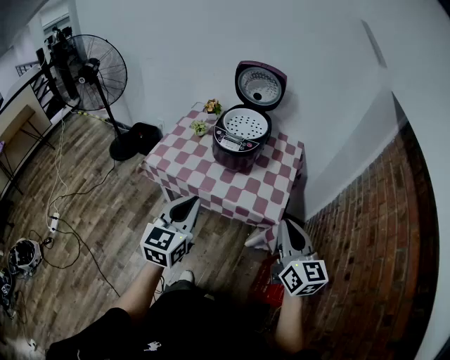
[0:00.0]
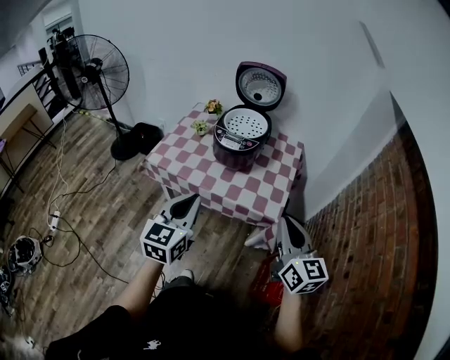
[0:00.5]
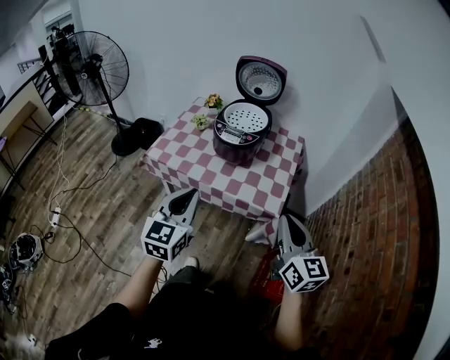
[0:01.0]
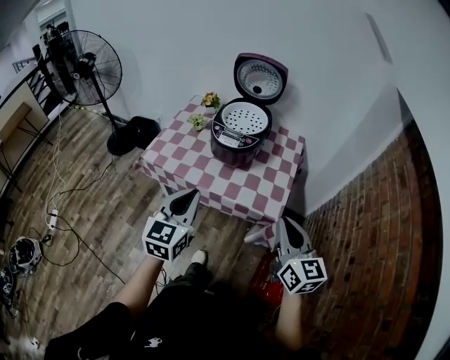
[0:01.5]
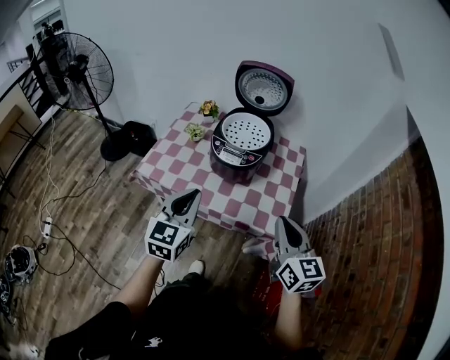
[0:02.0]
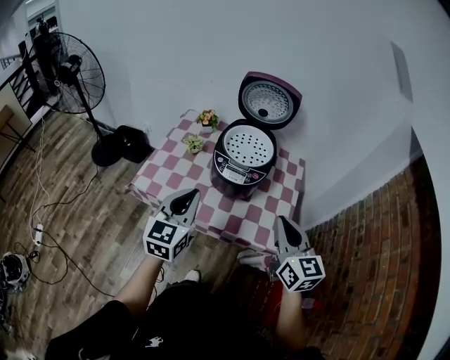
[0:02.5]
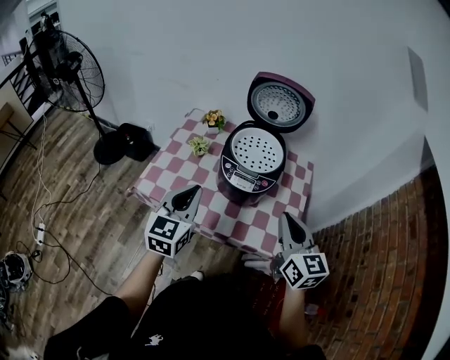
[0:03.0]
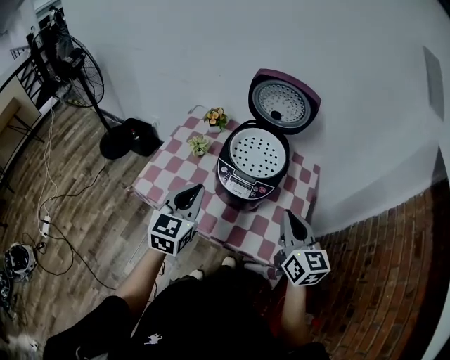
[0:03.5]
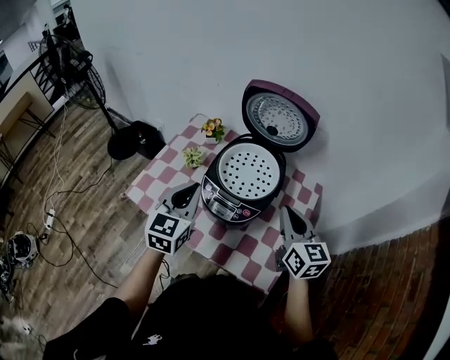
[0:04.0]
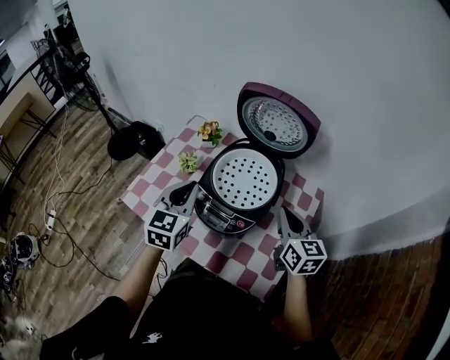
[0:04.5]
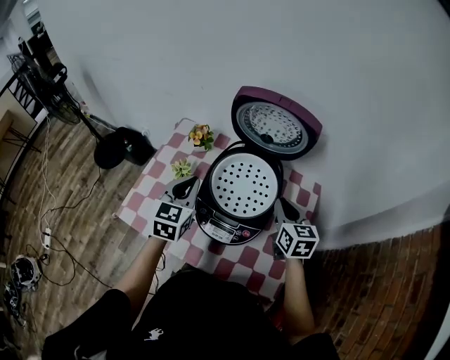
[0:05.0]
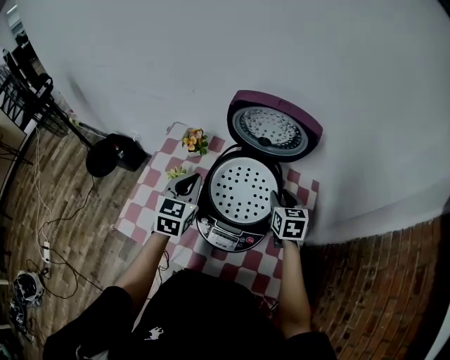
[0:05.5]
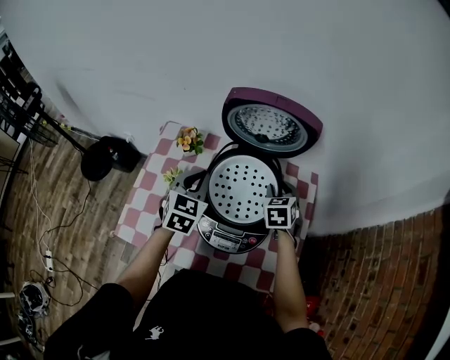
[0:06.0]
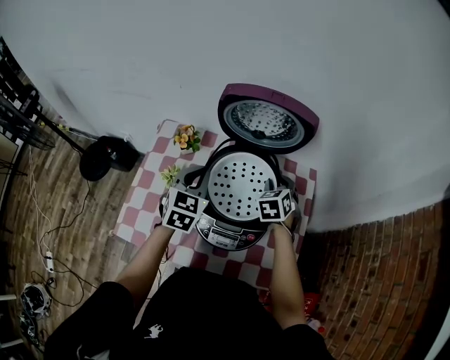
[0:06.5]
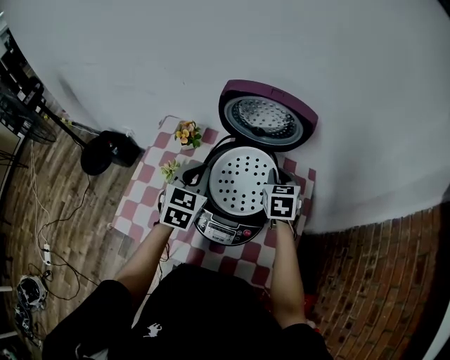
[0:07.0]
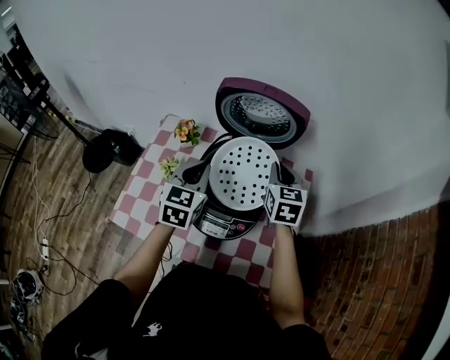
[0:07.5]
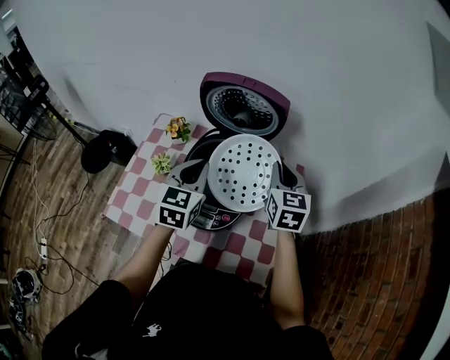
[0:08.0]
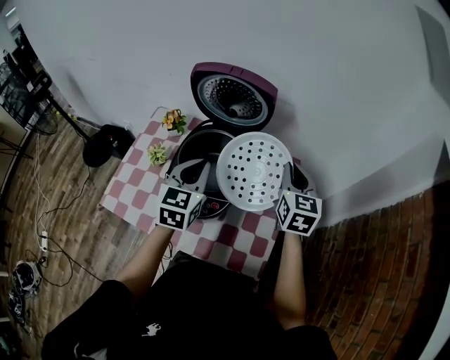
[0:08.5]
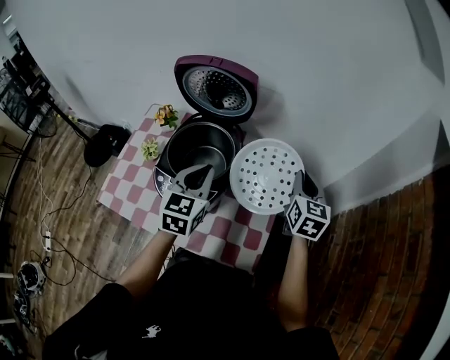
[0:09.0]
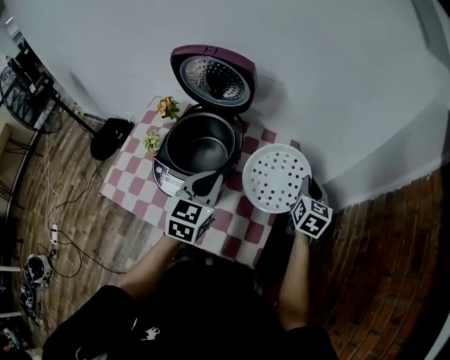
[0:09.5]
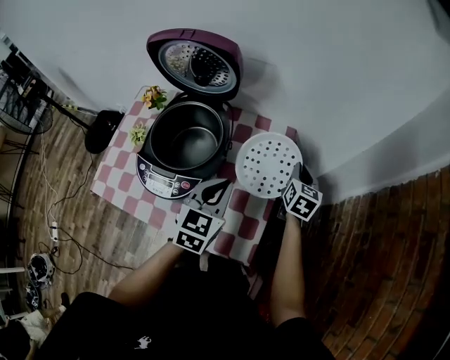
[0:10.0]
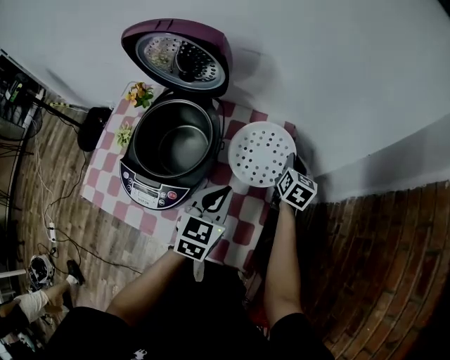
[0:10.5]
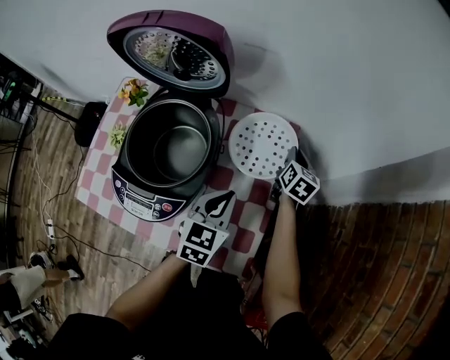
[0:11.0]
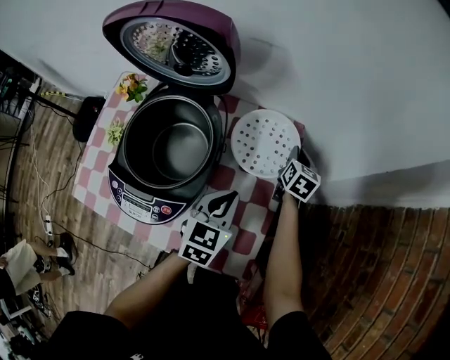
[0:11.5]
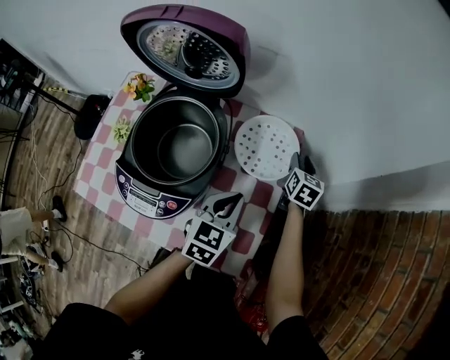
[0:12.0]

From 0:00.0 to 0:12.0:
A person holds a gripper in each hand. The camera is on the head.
From 0:00.0 to 0:02.0: Both grippers travel together forward, about 10 cm.
From 0:02.0 to 0:04.0: Both grippers travel together forward, roughly 25 cm.
From 0:04.0 to 0:06.0: The left gripper ends up some 20 cm from where it was, and turns by roughly 20 degrees. The right gripper shifts by some 25 cm, swivels about 50 degrees, and opens its fingers.
From 0:06.0 to 0:08.0: The left gripper shifts approximately 10 cm to the right and upward. Meanwhile the right gripper travels upward by about 15 cm, changes its angle by approximately 30 degrees, and closes up.
From 0:08.0 to 0:10.0: Both grippers travel together to the right and downward, about 25 cm. The right gripper changes its angle by about 20 degrees.
From 0:10.0 to 0:12.0: The right gripper shifts about 10 cm forward and downward, and opens, while the left gripper is displaced downward by approximately 10 cm.

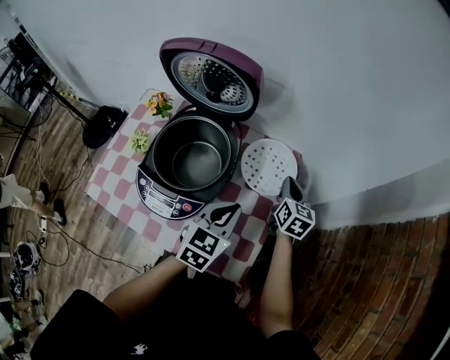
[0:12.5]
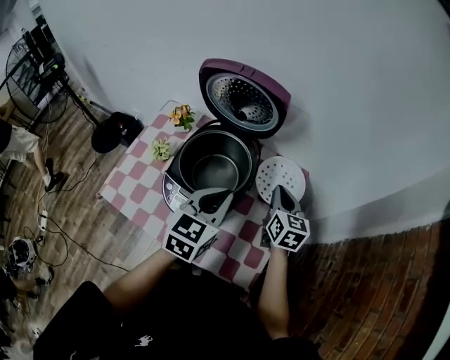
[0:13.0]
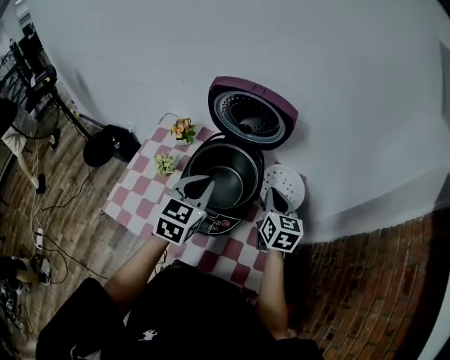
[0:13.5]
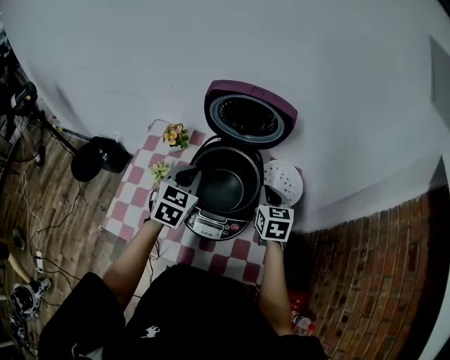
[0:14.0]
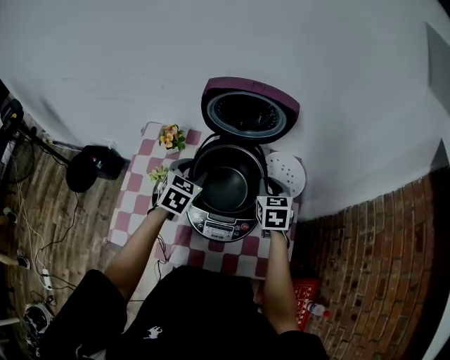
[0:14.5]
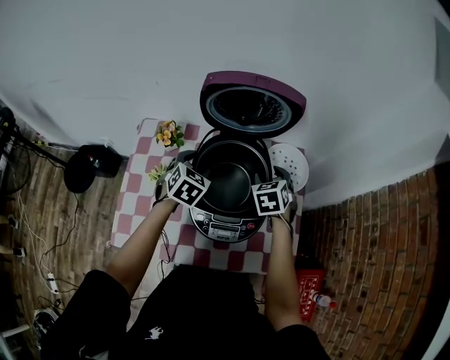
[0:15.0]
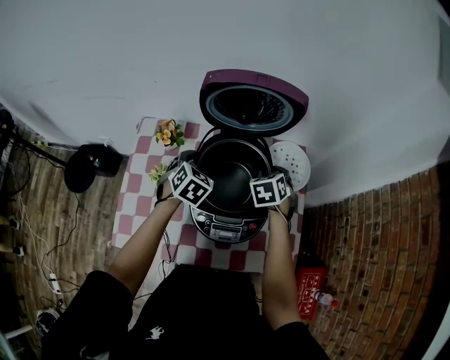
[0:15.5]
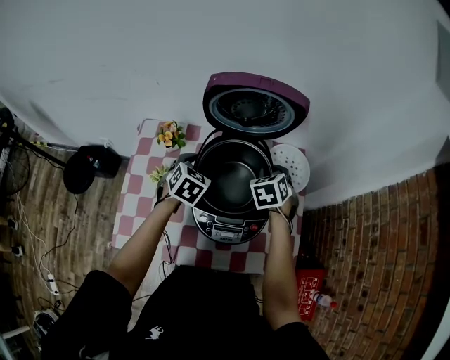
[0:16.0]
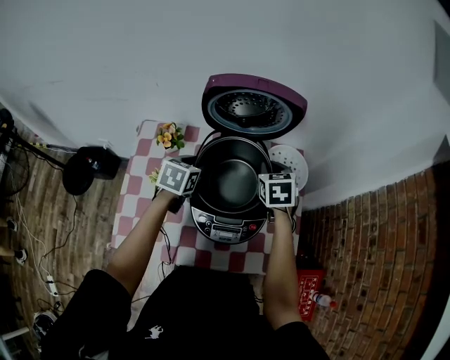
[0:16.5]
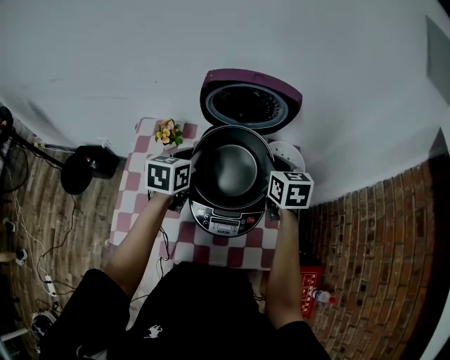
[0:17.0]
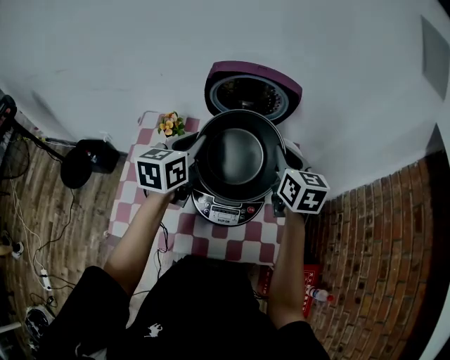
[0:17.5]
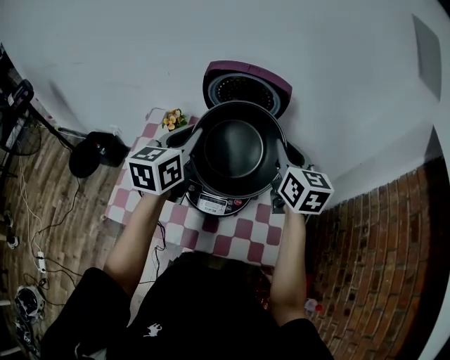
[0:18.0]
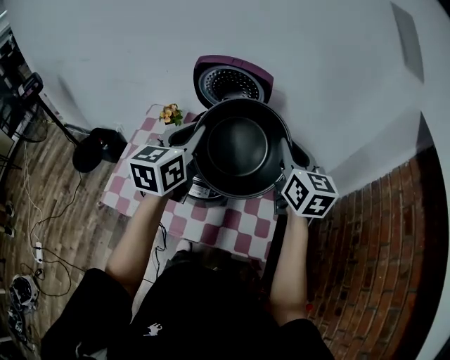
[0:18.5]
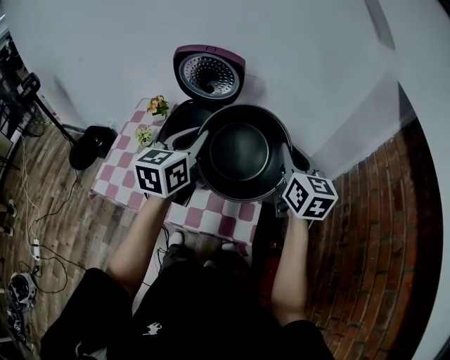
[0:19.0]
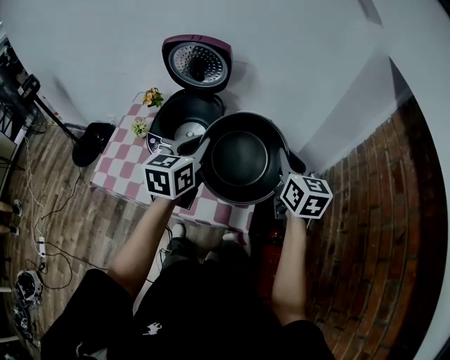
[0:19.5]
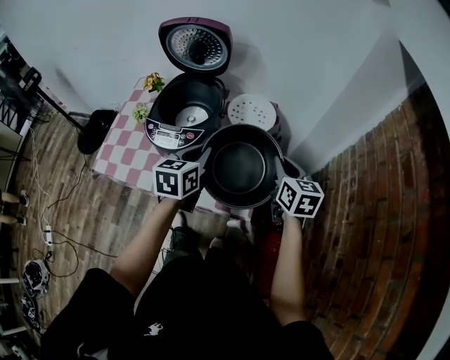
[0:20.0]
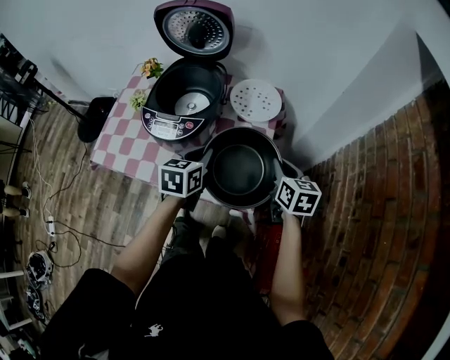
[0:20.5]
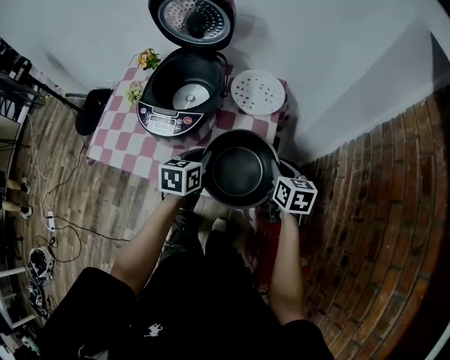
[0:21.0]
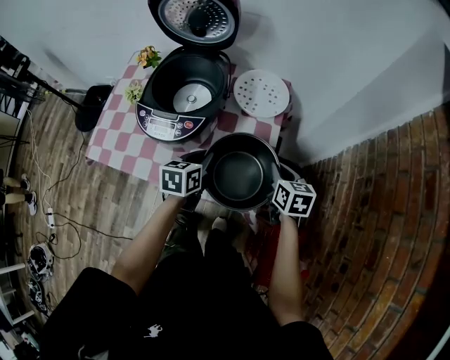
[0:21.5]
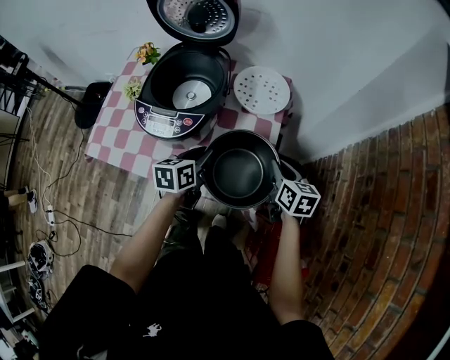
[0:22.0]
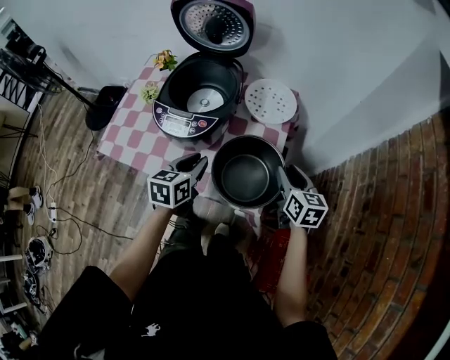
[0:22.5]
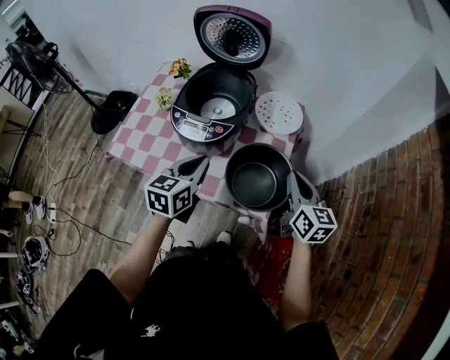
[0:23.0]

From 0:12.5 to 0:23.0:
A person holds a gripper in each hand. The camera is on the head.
From 0:12.5 to 0:14.5: The two grippers go approximately 25 cm to the left. The right gripper changes its angle by about 20 degrees. Meanwhile the left gripper opens.
From 0:14.5 to 0:16.5: The right gripper opens and closes again.
From 0:16.5 to 0:19.0: The right gripper heads to the right, upward and backward, covering roughly 30 cm, and angles its fingers upward, by roughly 30 degrees; the left gripper goes about 35 cm upward, to the right and backward, angles its fingers upward, by approximately 30 degrees, and closes up.
From 0:19.0 to 0:21.0: Both grippers move downward, about 25 cm. The left gripper rotates roughly 30 degrees. Meanwhile the right gripper changes its angle by about 30 degrees.
From 0:21.0 to 0:23.0: The right gripper moves upward, some 10 cm, rotates approximately 20 degrees, and opens, then closes once more, while the left gripper heads upward and to the left, covering roughly 15 cm.

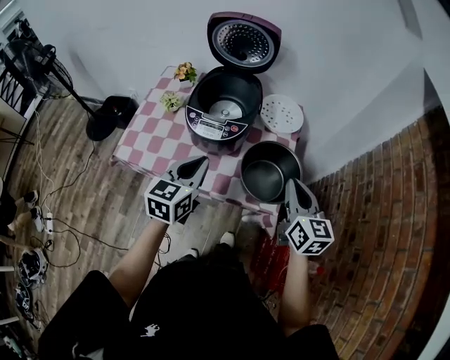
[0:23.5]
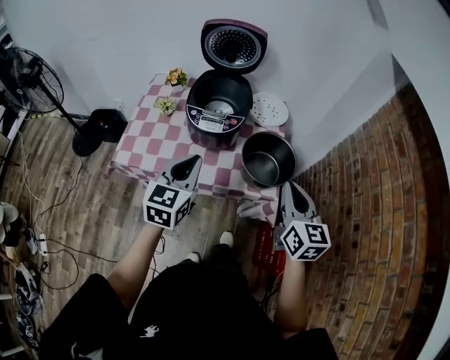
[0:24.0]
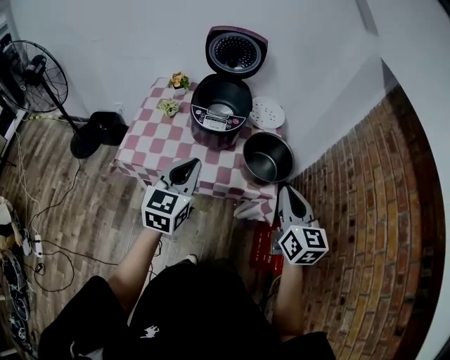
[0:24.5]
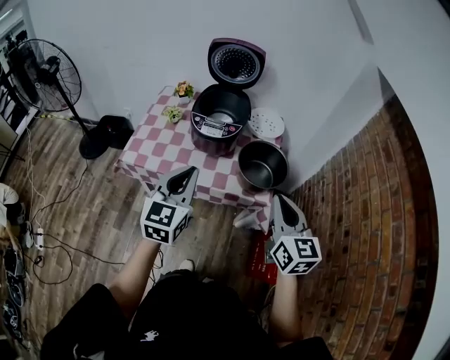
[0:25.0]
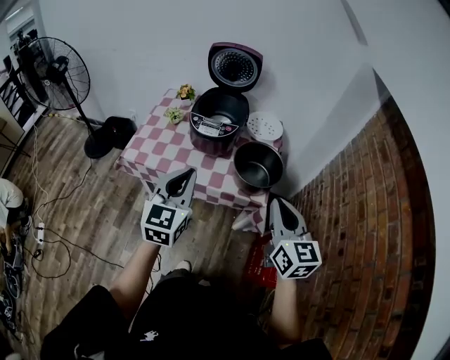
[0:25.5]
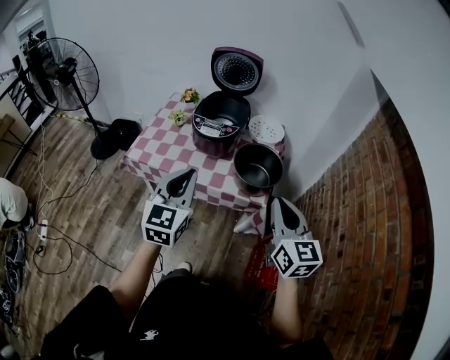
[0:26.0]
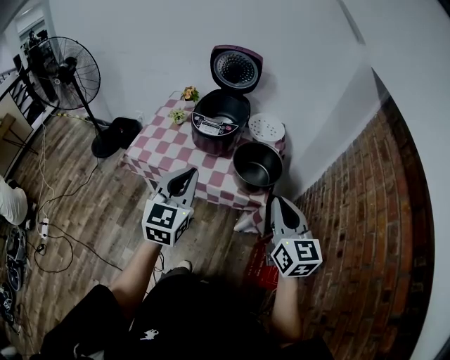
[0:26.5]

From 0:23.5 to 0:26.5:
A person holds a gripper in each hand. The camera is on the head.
From 0:23.5 to 0:25.0: Both grippers travel together backward and upward, roughly 20 cm.
From 0:25.0 to 0:26.5: The right gripper goes roughly 5 cm to the right. Meanwhile the left gripper is displaced backward by some 5 cm.

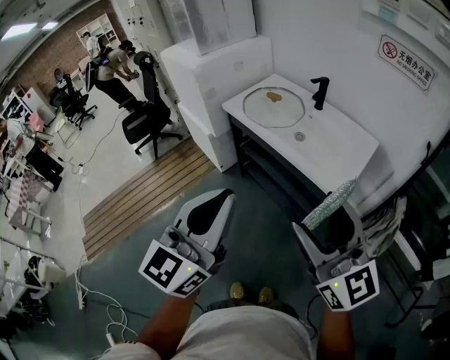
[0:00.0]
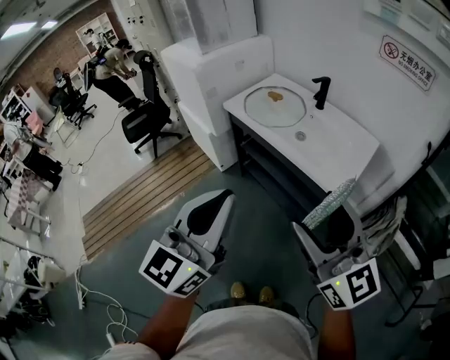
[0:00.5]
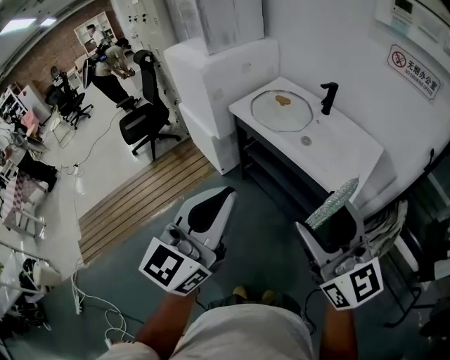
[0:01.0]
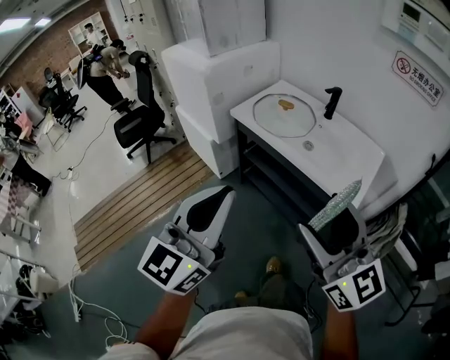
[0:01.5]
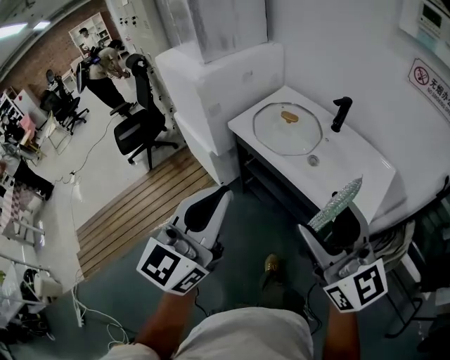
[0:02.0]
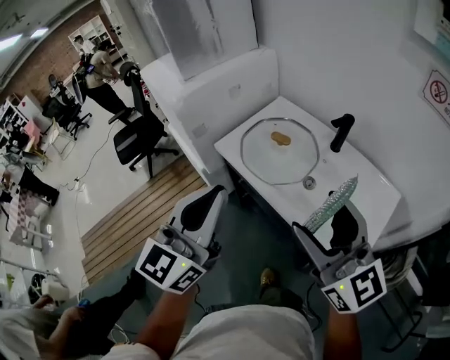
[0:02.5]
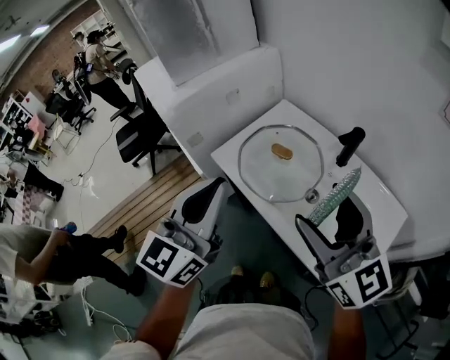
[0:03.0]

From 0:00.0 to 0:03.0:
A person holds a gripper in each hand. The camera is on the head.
From 0:00.0 to 0:01.5: The left gripper goes roughly 10 cm to the left and forward, while the right gripper goes roughly 10 cm to the left.
From 0:01.5 to 0:03.0: The two grippers go roughly 35 cm forward.
